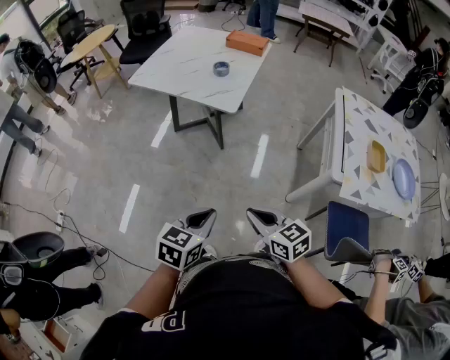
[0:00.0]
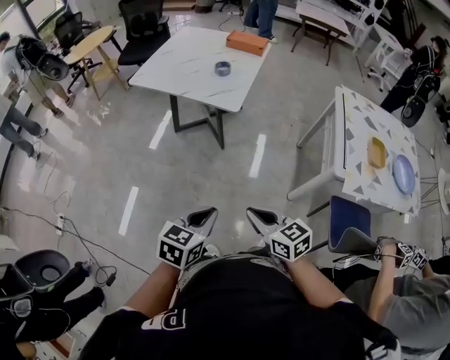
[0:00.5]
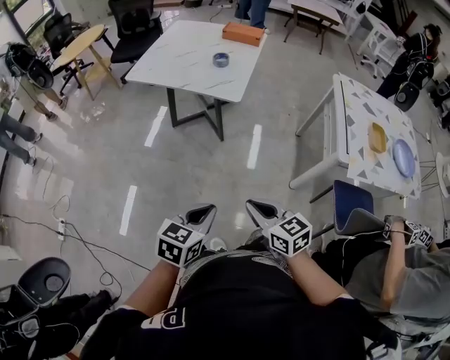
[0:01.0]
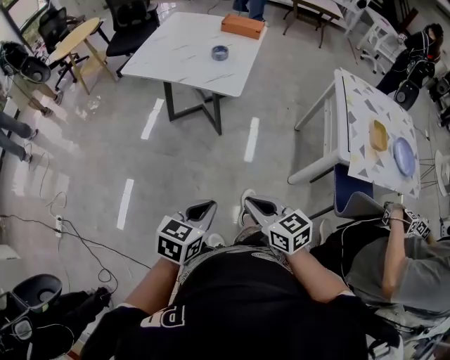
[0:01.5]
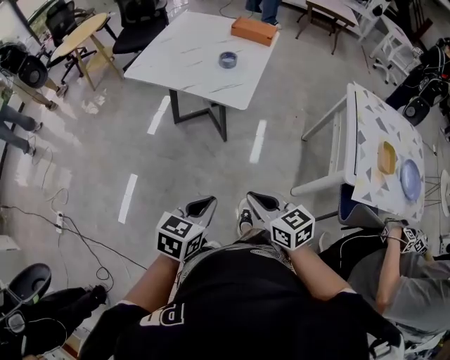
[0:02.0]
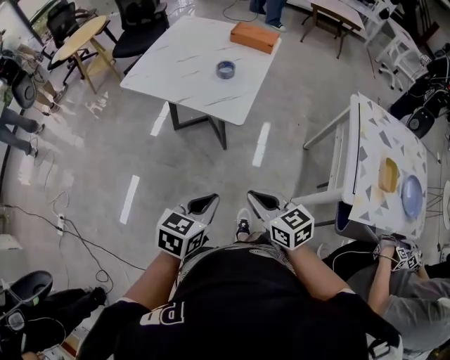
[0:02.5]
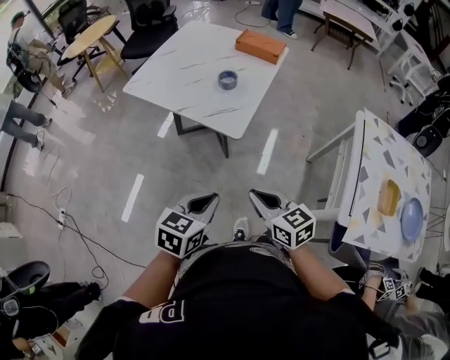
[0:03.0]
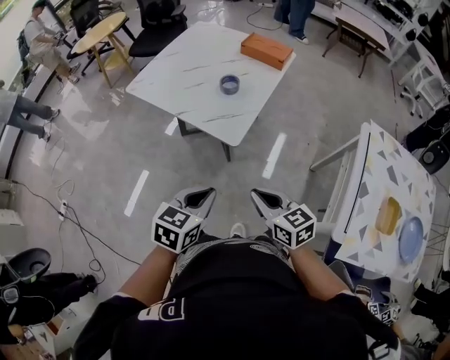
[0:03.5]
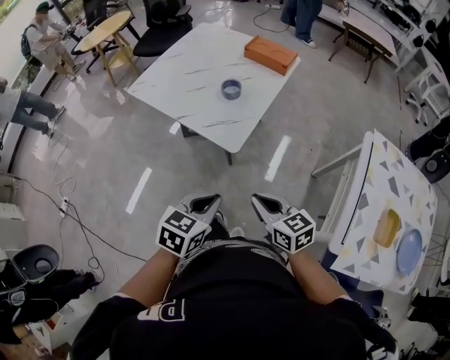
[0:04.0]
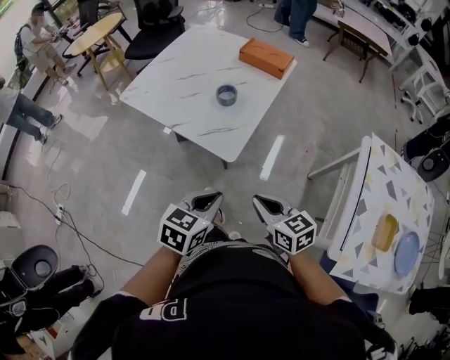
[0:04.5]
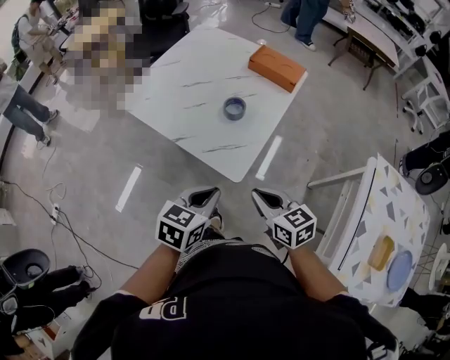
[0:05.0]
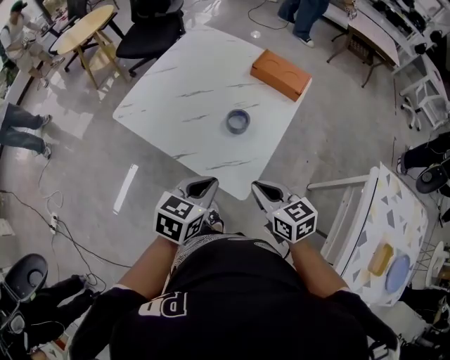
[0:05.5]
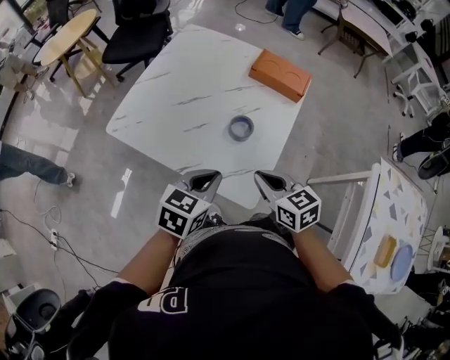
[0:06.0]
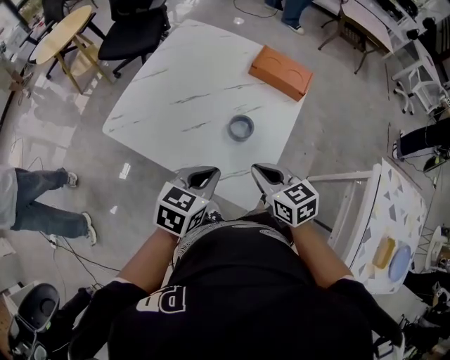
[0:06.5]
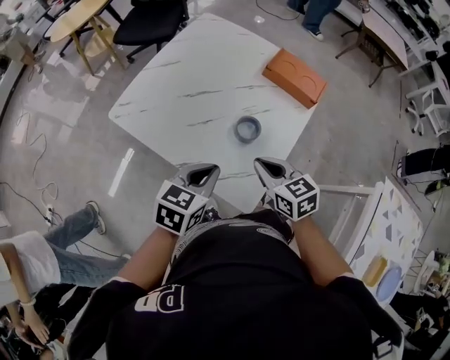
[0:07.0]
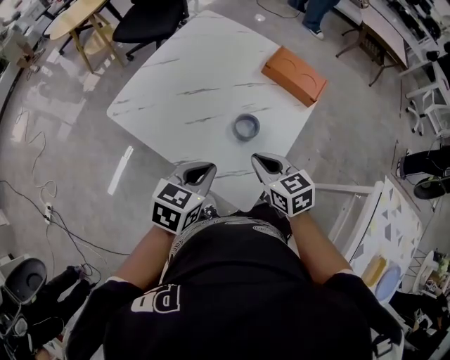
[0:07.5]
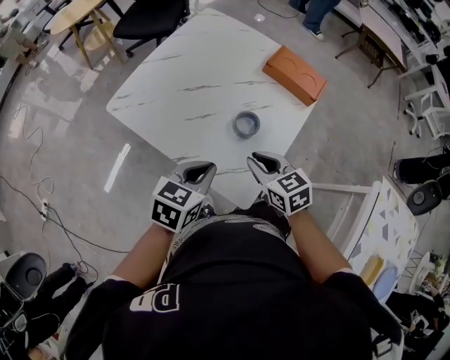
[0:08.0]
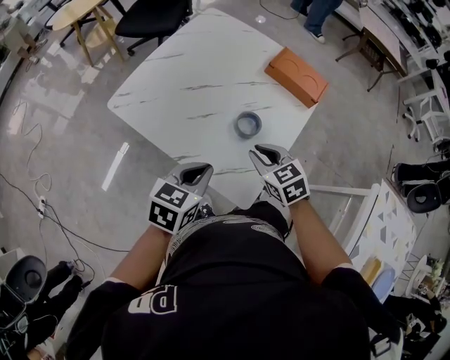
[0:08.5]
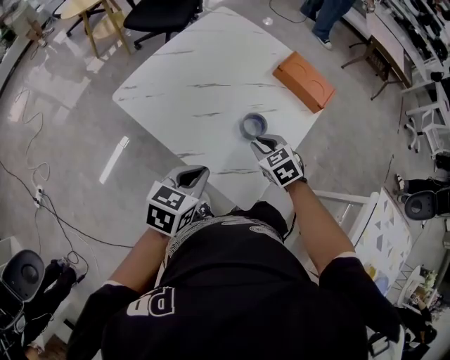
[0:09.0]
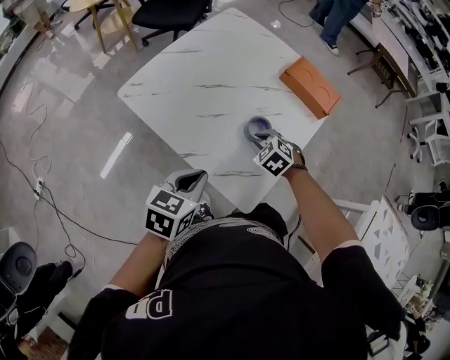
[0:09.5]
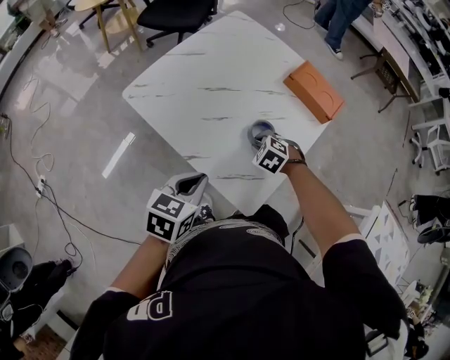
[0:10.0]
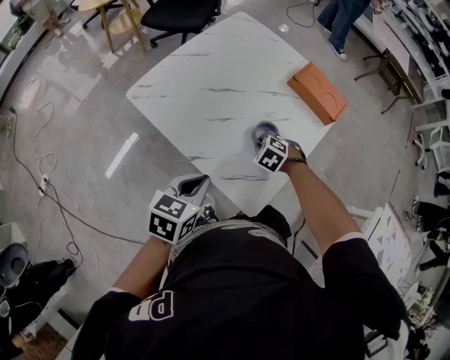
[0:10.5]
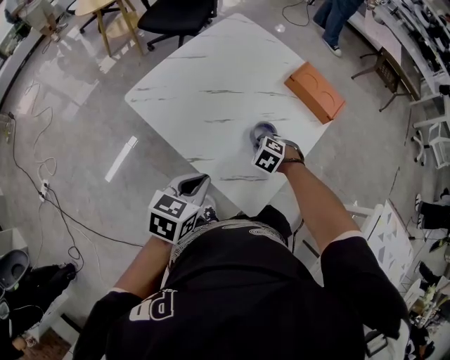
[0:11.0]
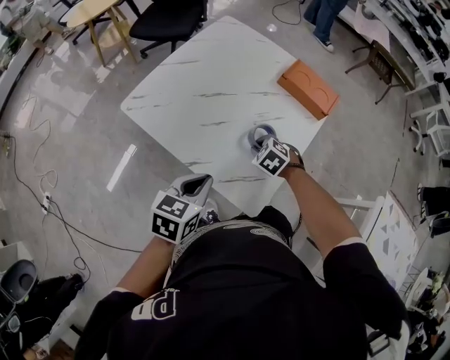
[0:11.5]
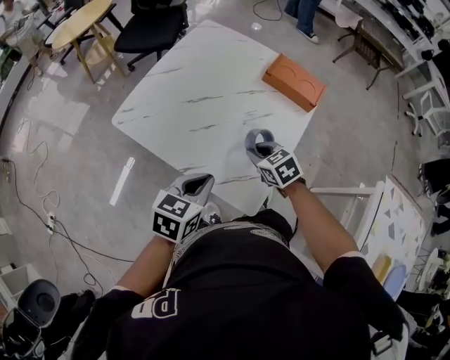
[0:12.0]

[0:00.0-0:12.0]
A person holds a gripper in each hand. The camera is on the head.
0:00.0 to 0:02.0: The grippers both shift forward and to the left by approximately 10 cm.
0:02.0 to 0:04.0: Both grippers move forward and to the right, some 20 cm.
0:04.0 to 0:06.0: Both grippers move forward, some 30 cm.
0:06.0 to 0:08.0: The right gripper travels forward by approximately 5 cm.
0:08.0 to 0:10.0: The right gripper heads downward and forward, covering roughly 15 cm, and angles its fingers downward, by about 30 degrees; the left gripper moves to the left, approximately 5 cm.
0:10.0 to 0:12.0: The right gripper heads upward, covering about 10 cm, and changes its angle by some 40 degrees.

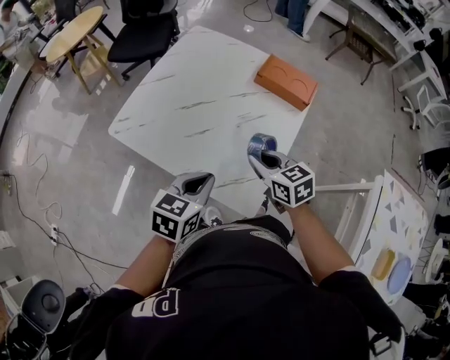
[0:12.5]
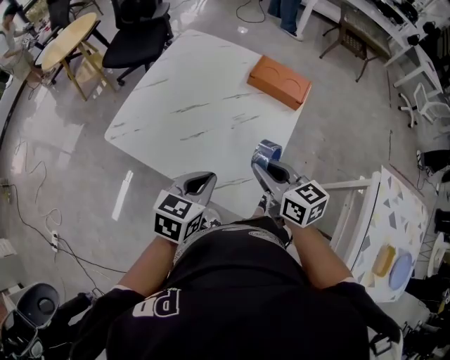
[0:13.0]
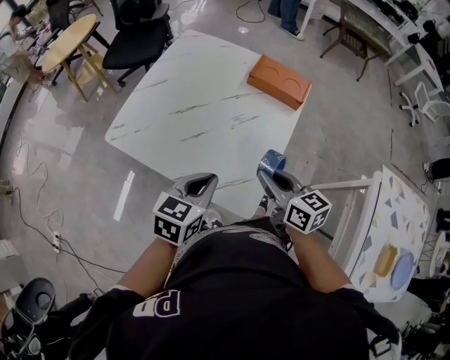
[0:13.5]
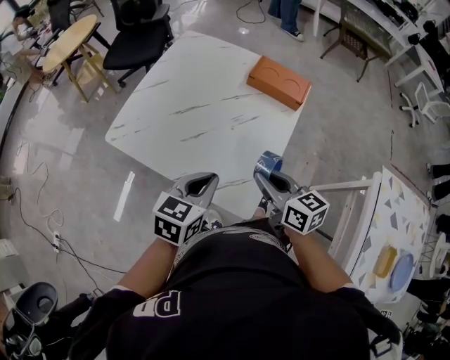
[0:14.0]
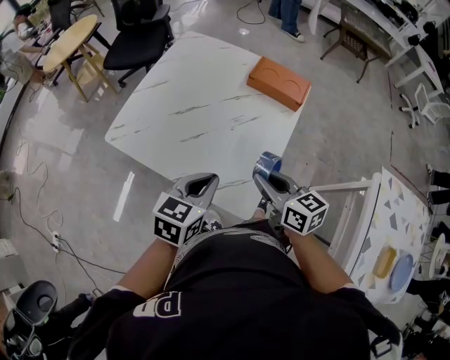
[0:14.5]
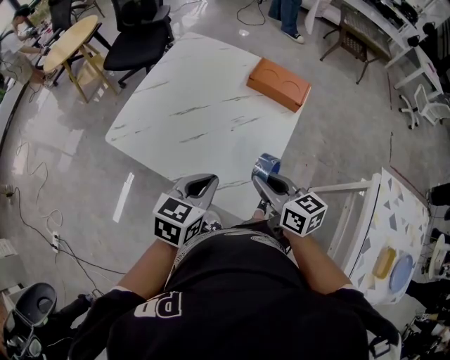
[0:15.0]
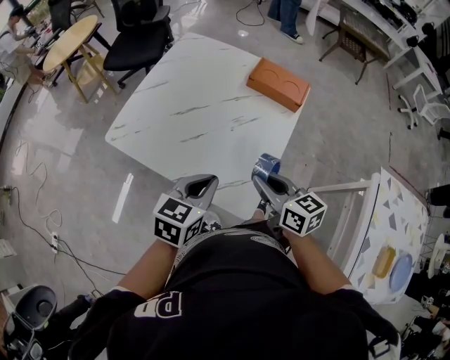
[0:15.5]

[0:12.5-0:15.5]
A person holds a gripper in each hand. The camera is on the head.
0:12.5 to 0:14.0: The right gripper moves some 5 cm.
0:14.0 to 0:15.5: The two grippers keep their place.

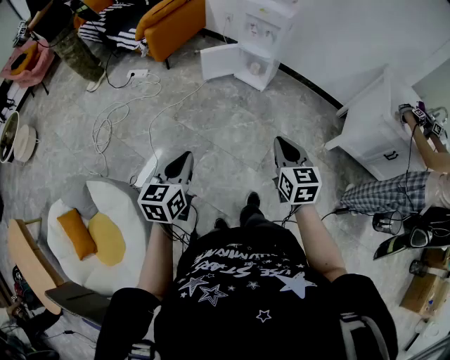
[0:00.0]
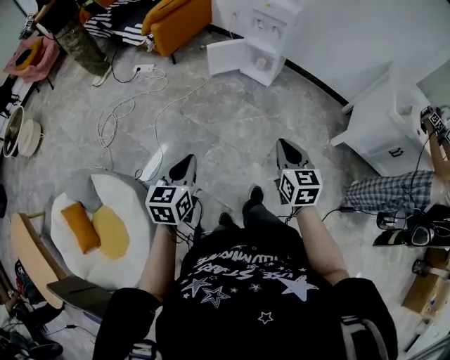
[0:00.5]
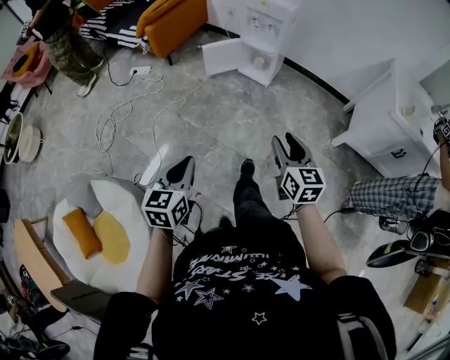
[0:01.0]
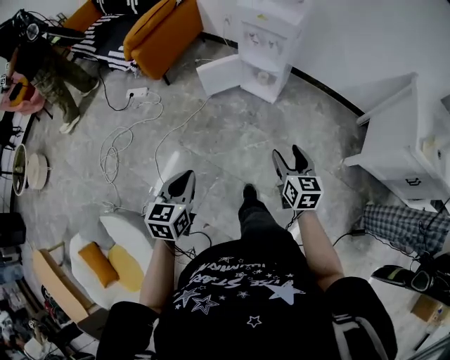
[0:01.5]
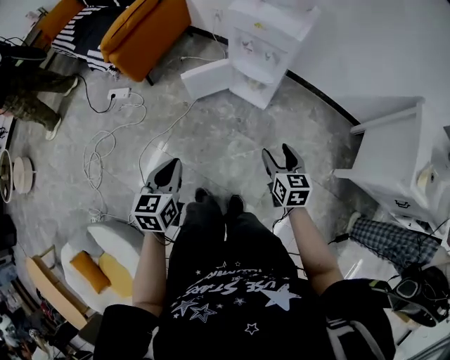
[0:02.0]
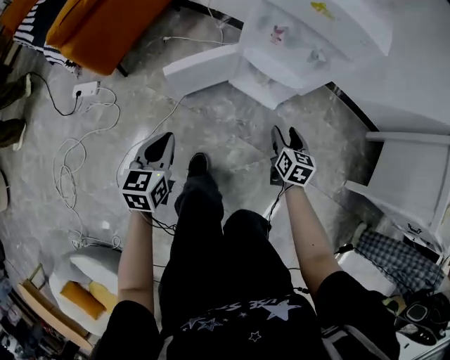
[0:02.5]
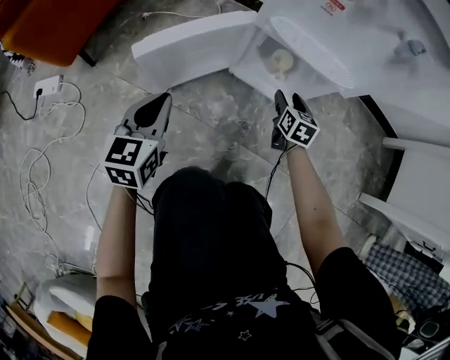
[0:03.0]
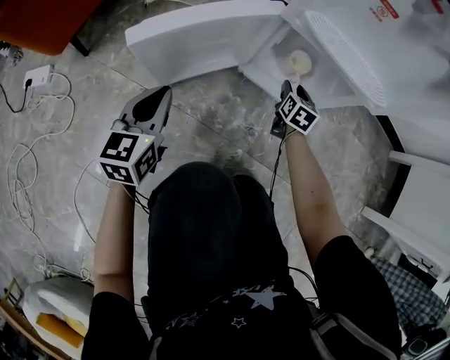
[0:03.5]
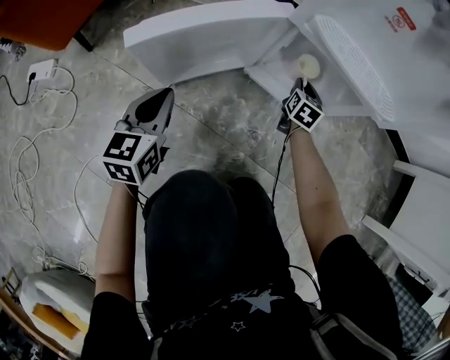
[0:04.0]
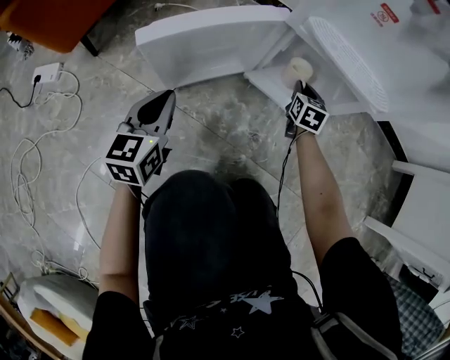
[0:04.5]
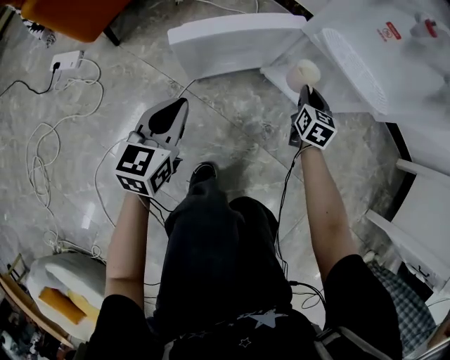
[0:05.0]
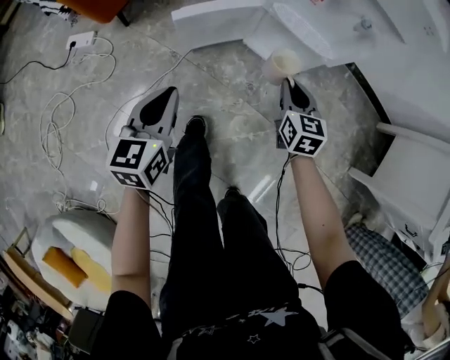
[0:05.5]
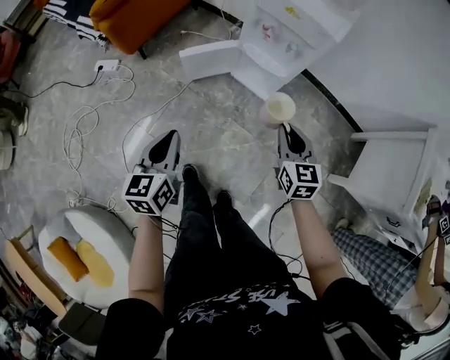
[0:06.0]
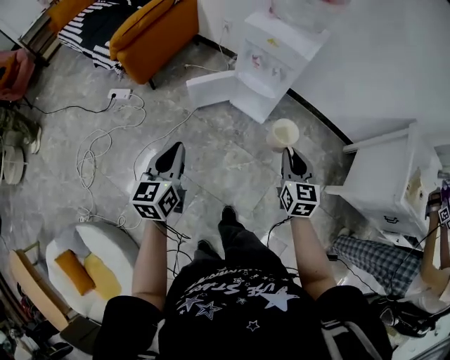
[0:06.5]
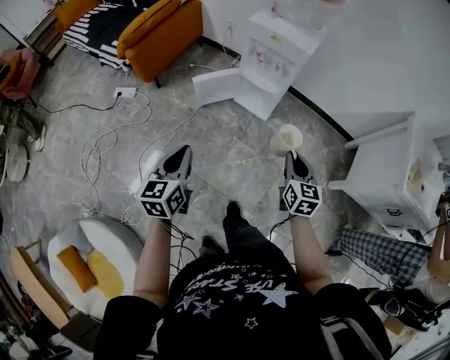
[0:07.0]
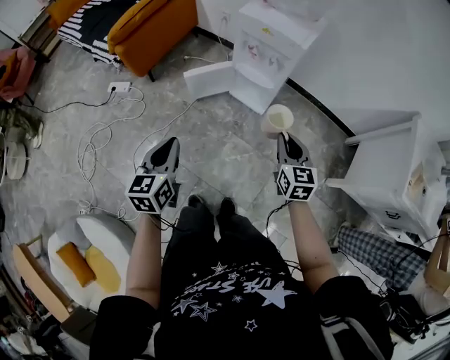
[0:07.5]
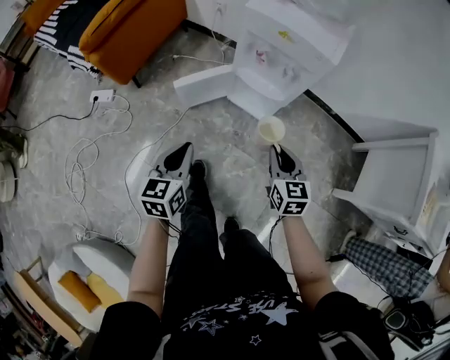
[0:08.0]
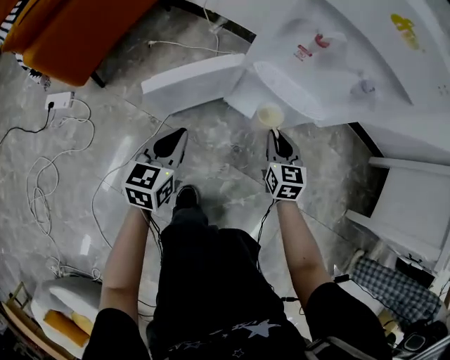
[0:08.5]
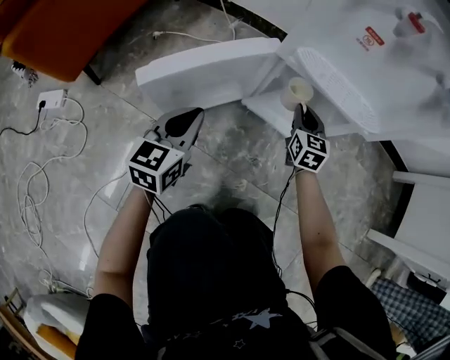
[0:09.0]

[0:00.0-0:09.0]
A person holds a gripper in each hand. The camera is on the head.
0:00.0 to 0:02.0: Both grippers are carried forward, roughly 40 cm. The right gripper opens up.
0:02.0 to 0:04.5: The pair of grippers is taken forward, some 40 cm. The grippers both shift downward by roughly 50 cm. The right gripper changes its angle by approximately 20 degrees, and closes up.
0:04.5 to 0:07.0: The two grippers travel together, backward, about 50 cm. The grippers both shift upward by roughly 60 cm.
0:07.0 to 0:09.0: Both grippers are carried forward, roughly 50 cm. Both grippers move downward, approximately 60 cm. The left gripper turns by about 20 degrees.

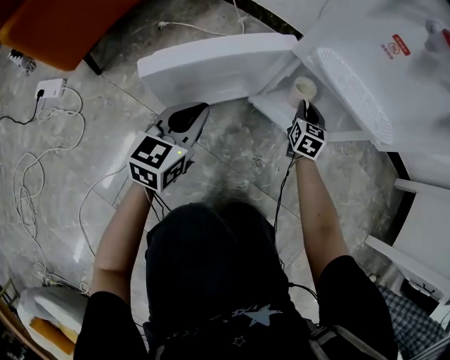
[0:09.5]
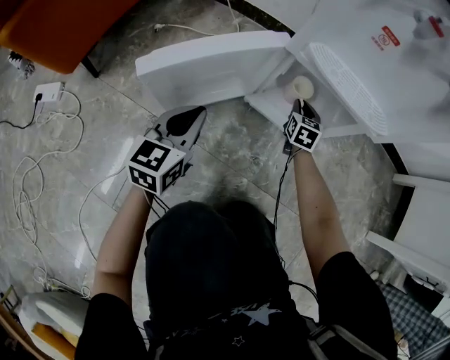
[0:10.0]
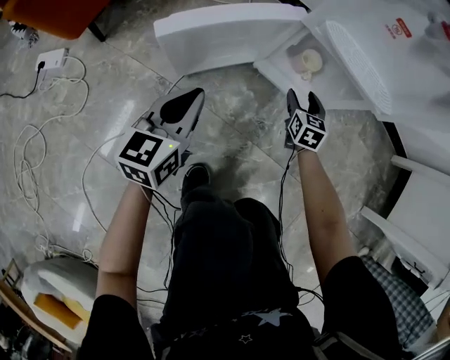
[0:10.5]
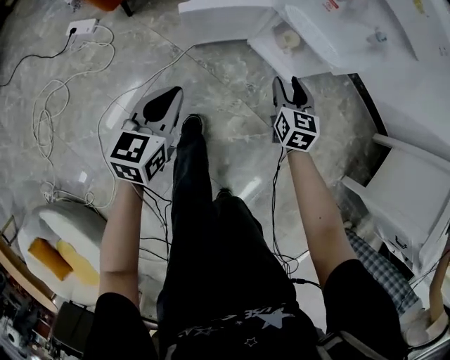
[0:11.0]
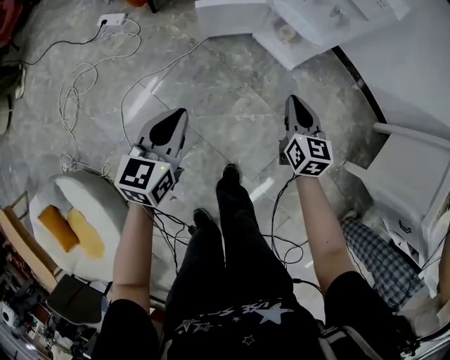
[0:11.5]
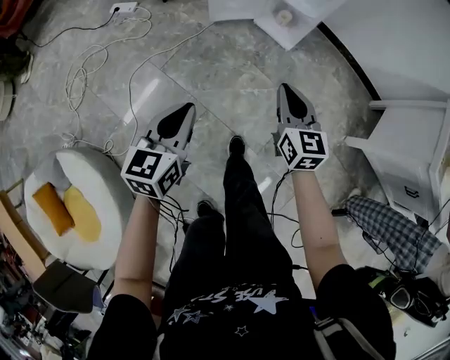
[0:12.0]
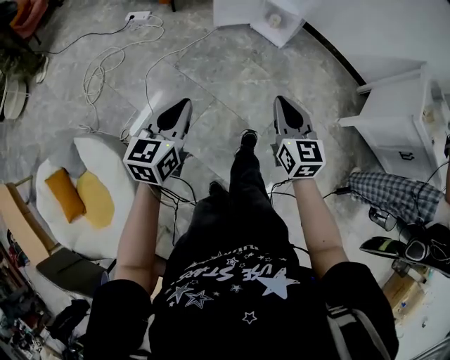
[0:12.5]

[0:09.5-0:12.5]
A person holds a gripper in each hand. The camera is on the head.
0:09.5 to 0:11.0: The left gripper is displaced backward and upward by approximately 30 cm; the right gripper is displaced upward and backward by roughly 35 cm, and opens.
0:11.0 to 0:12.5: Both grippers are carried backward, roughly 60 cm. The two grippers go approximately 35 cm upward. The right gripper closes up.
